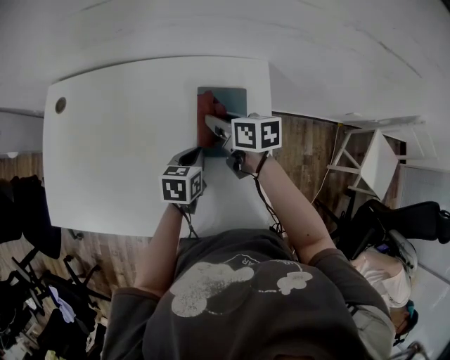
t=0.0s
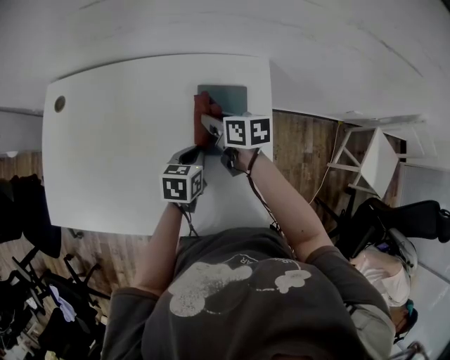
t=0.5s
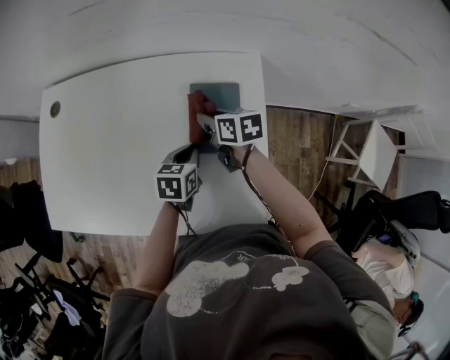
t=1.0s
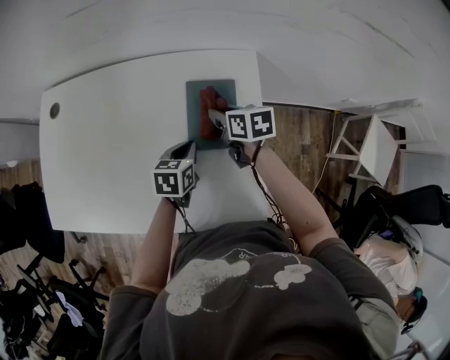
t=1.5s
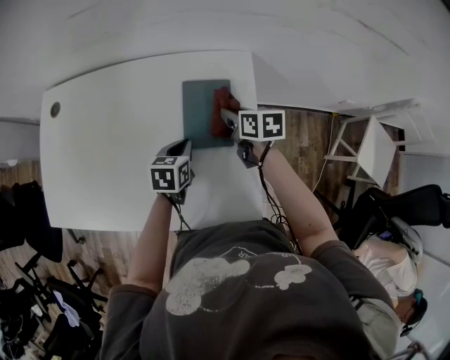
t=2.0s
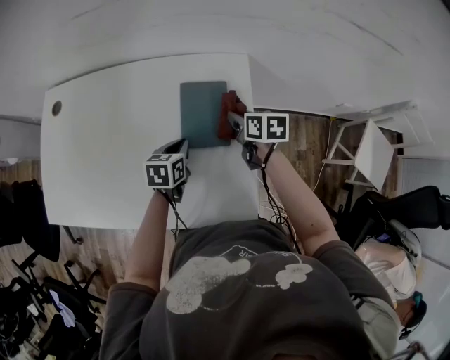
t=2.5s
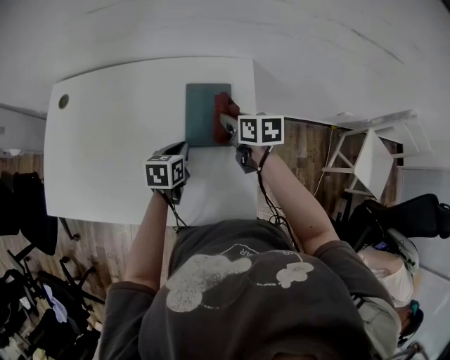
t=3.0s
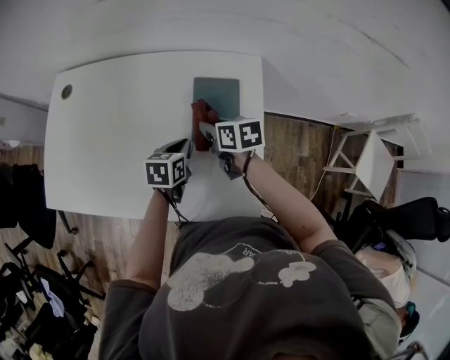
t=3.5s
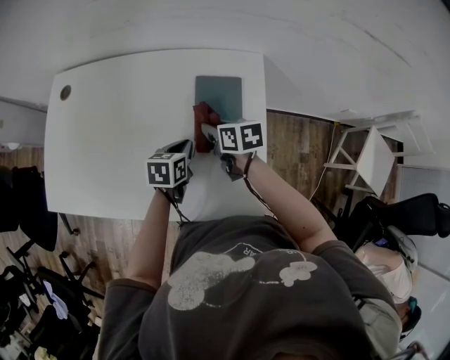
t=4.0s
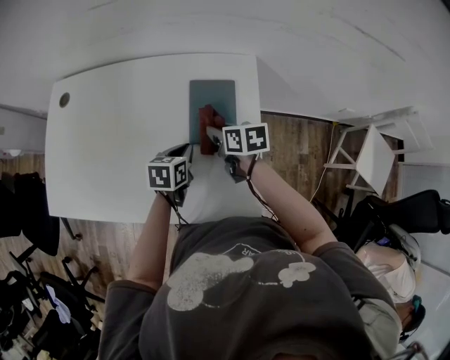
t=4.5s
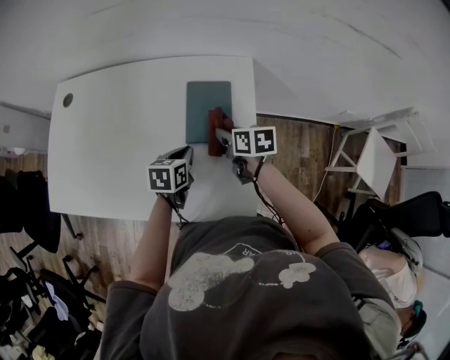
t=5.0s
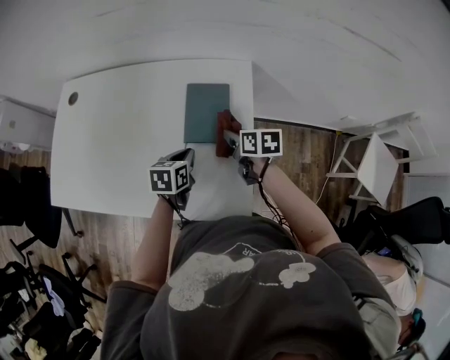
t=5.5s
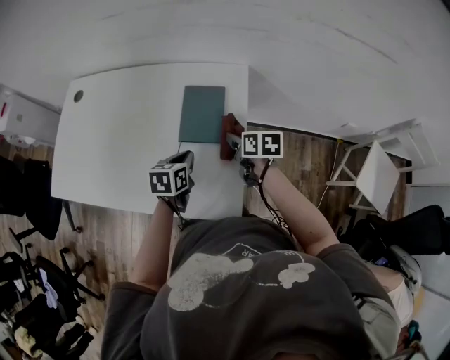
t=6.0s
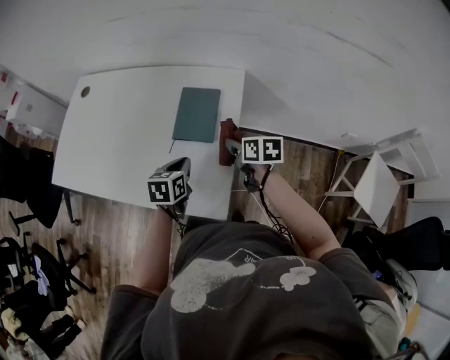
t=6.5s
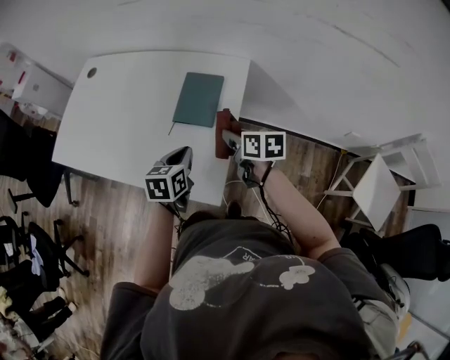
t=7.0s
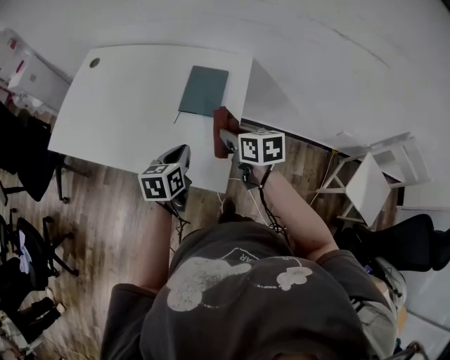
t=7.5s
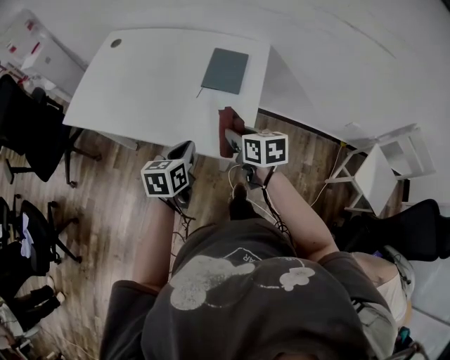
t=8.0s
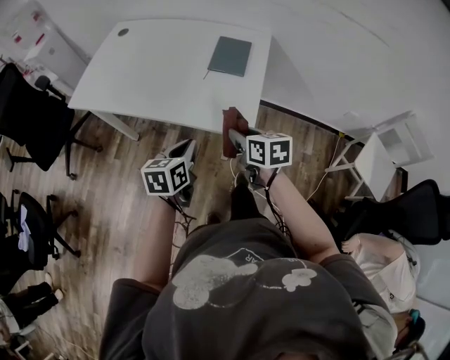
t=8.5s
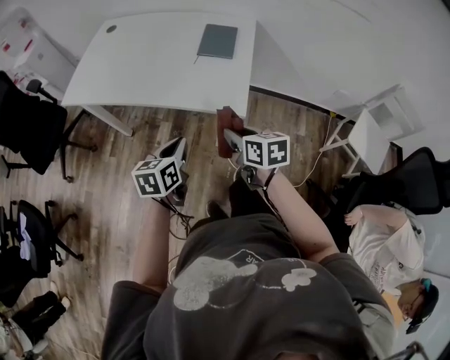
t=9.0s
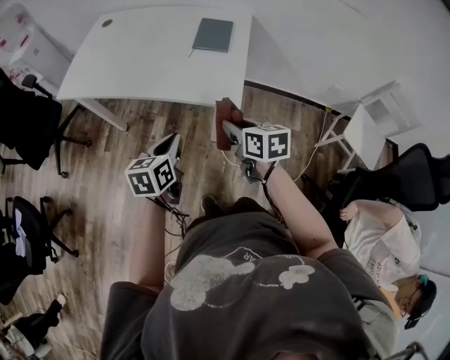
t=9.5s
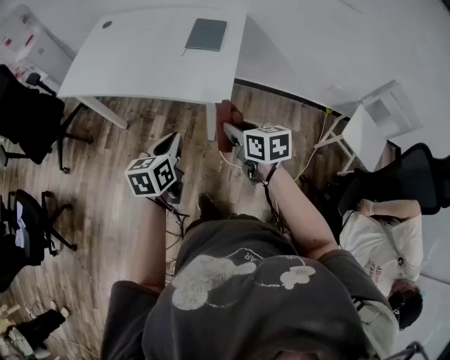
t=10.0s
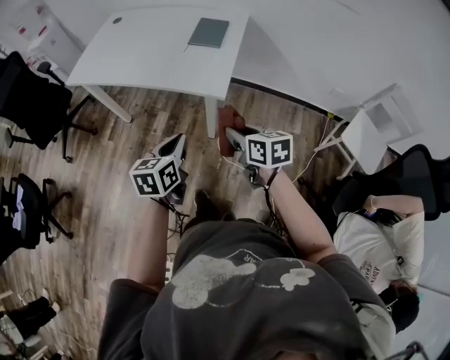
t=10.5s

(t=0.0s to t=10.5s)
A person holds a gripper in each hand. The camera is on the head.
t=0.0s - t=2.0s: The right gripper heads to the right, covering roughly 10 cm.
t=2.0s - t=4.0s: The right gripper shifts about 10 cm to the left and backward.
t=4.0s - t=6.5s: The left gripper goes some 15 cm backward, to the right and upward. Meanwhile the right gripper moves to the right and backward, some 20 cm.
t=6.5s - t=8.5s: Both grippers move backward and to the left, approximately 30 cm.
t=8.5s - t=10.5s: The left gripper moves backward, some 20 cm. The right gripper moves backward and to the right, approximately 20 cm.

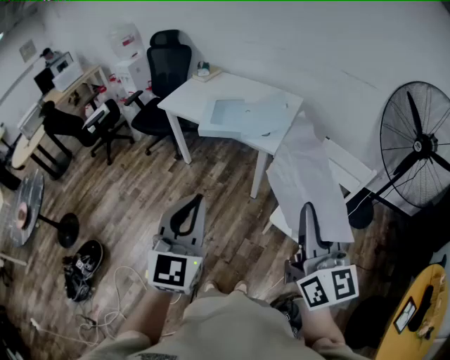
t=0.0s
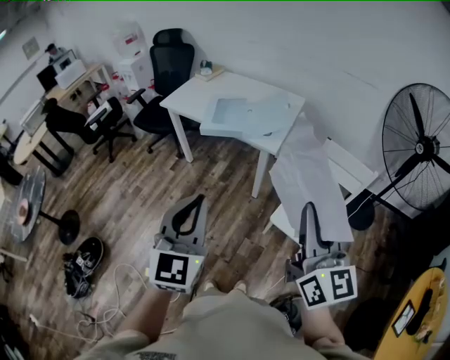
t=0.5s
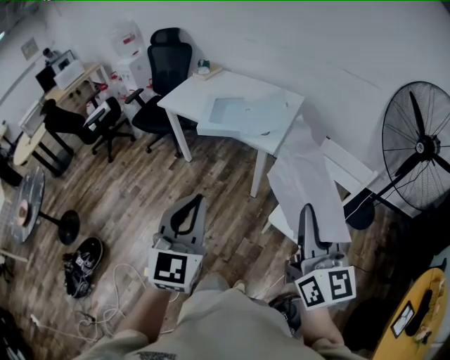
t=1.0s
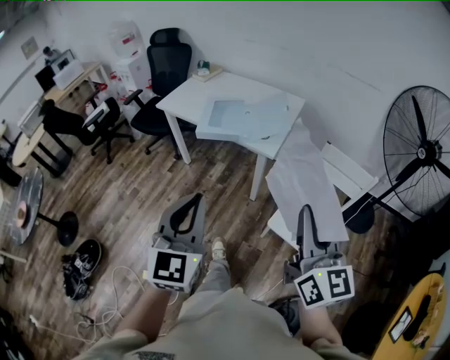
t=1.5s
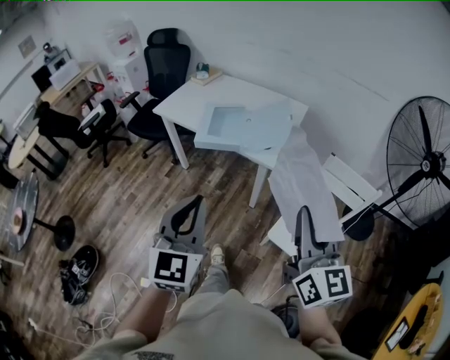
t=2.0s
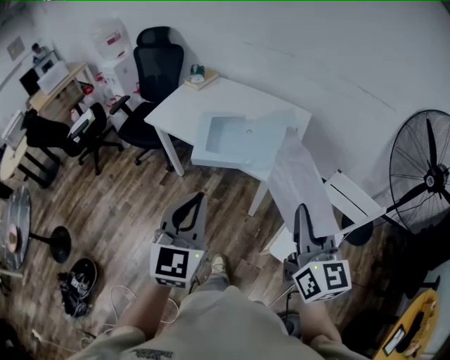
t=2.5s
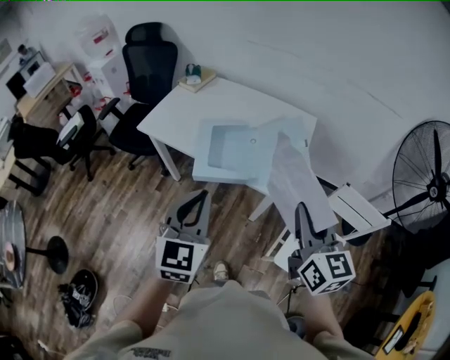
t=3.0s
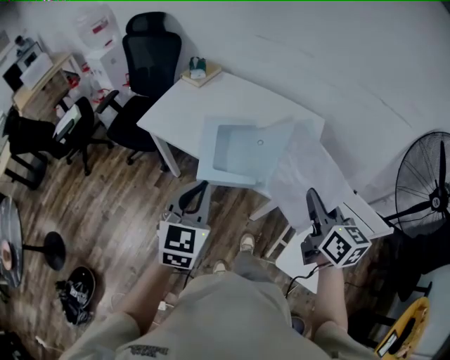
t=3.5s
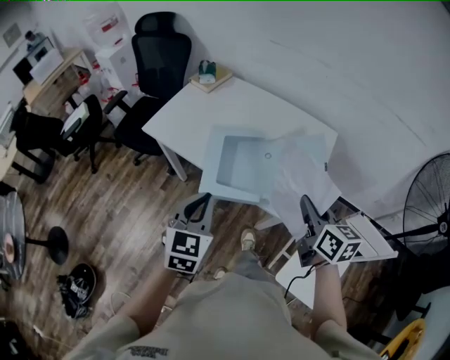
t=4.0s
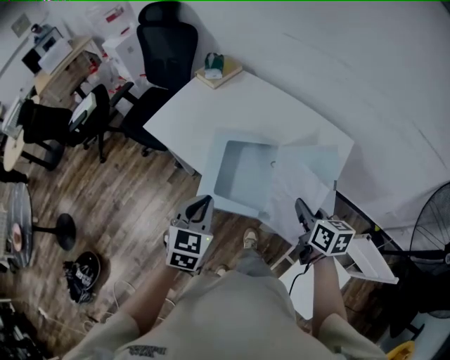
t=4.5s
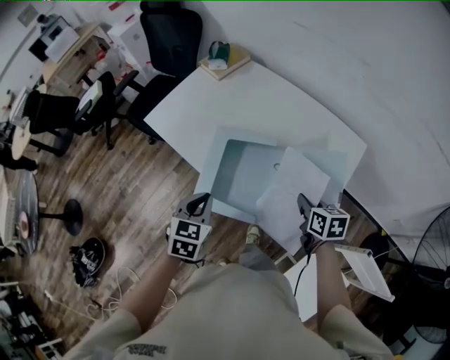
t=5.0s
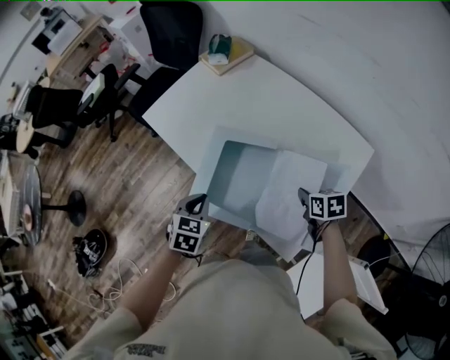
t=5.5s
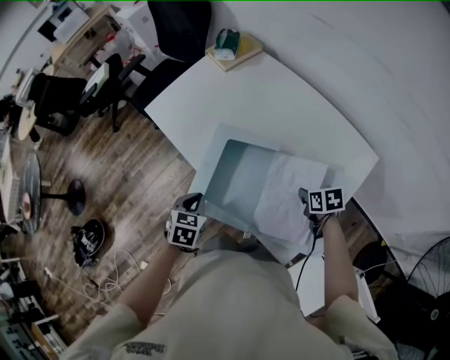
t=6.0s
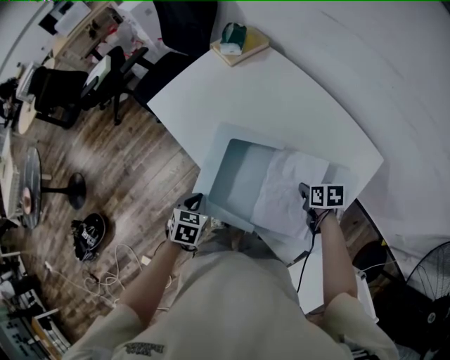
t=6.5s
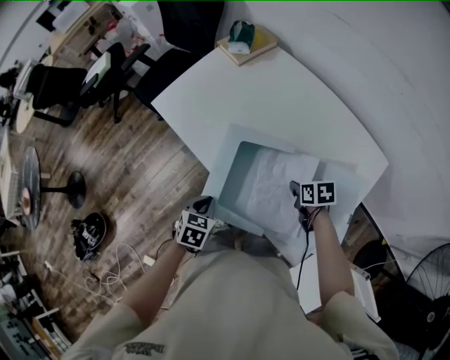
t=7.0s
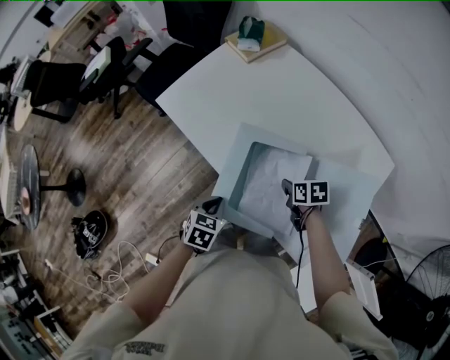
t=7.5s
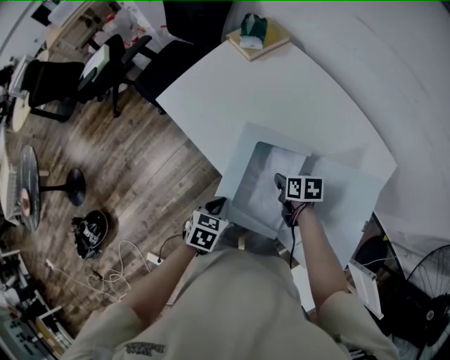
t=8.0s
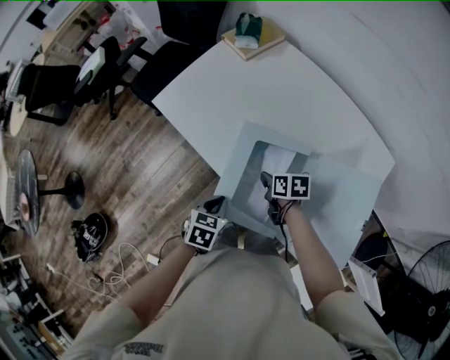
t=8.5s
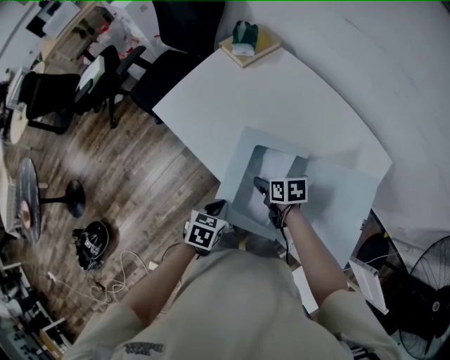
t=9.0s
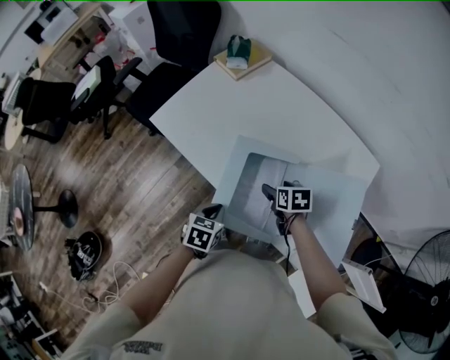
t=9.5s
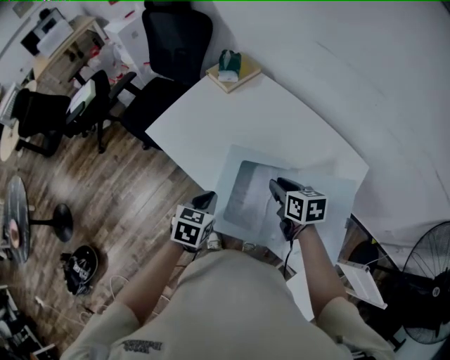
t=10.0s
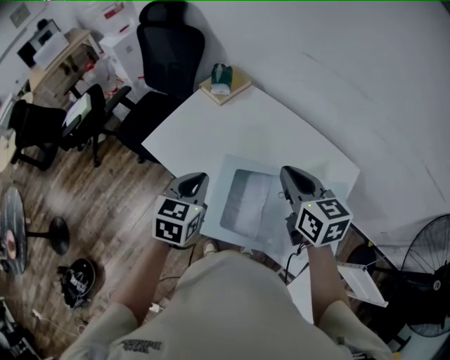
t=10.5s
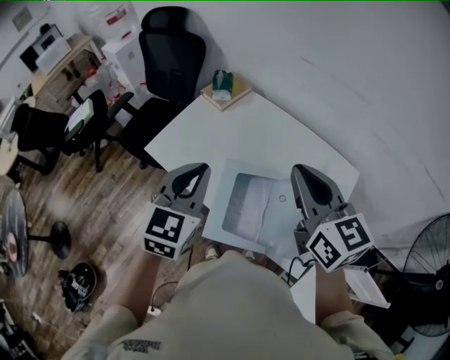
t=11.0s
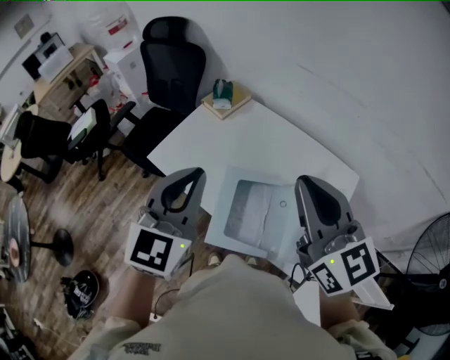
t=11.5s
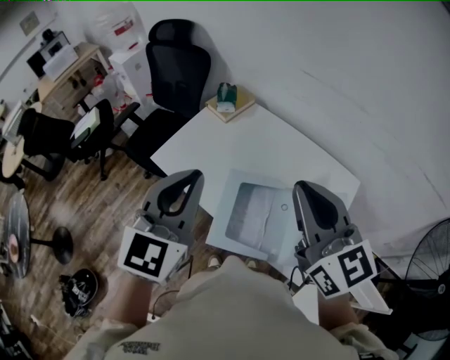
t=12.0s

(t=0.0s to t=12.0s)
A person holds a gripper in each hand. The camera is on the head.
t=0.0s - t=2.0s: Both grippers travel together forward, about 10 cm.
t=2.0s - t=4.0s: The pair of grippers is taken forward, roughly 40 cm. The right gripper swivels roughly 30 degrees.
t=4.0s - t=6.0s: Both grippers move downward, approximately 25 cm. The right gripper angles its fingers downward, by some 40 degrees. The left gripper tips its fingers downward by about 30 degrees.
t=6.0s - t=8.0s: The right gripper shifts about 20 cm to the left and forward.
t=8.0s - t=10.0s: The left gripper moves upward and forward, some 10 cm. The right gripper is displaced upward by about 15 cm, turns by roughly 20 degrees, and opens, then closes once more.
t=10.0s - t=12.0s: Both grippers move upward, approximately 35 cm. The left gripper angles its fingers upward, by about 40 degrees. The right gripper points its fingers about 40 degrees further upward.

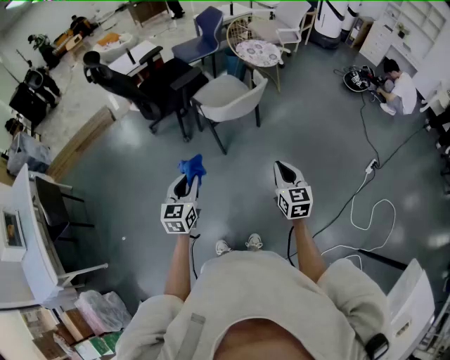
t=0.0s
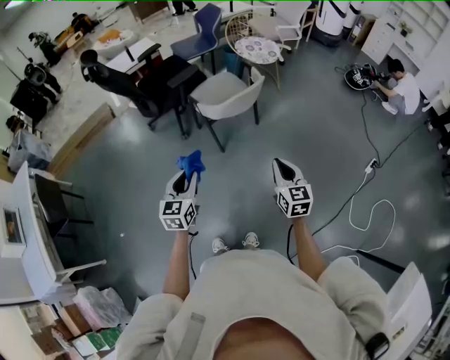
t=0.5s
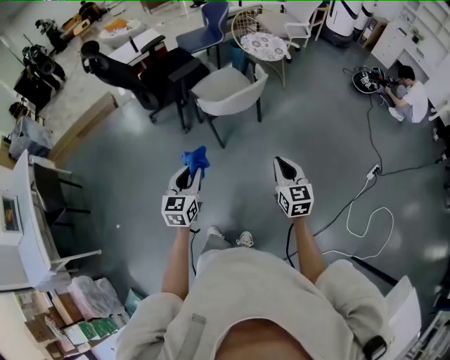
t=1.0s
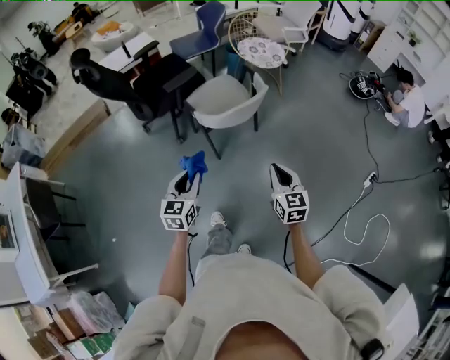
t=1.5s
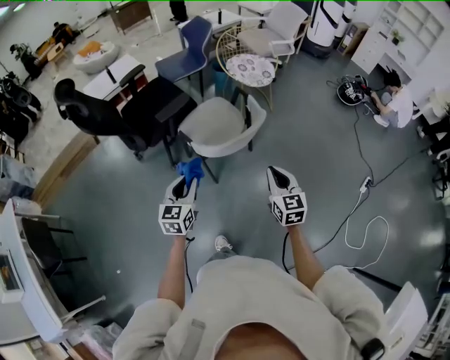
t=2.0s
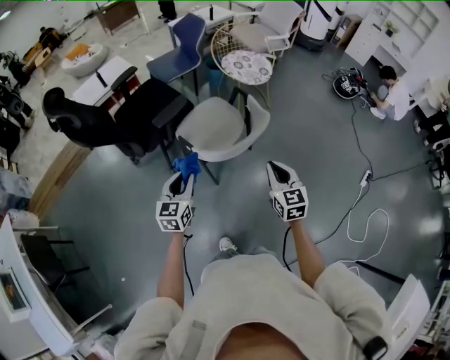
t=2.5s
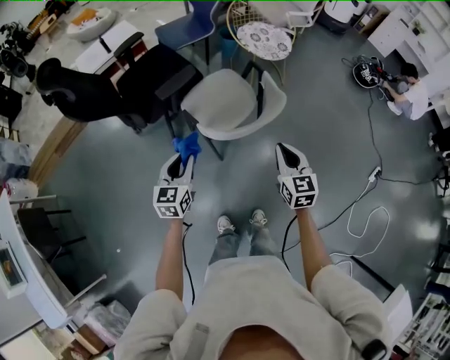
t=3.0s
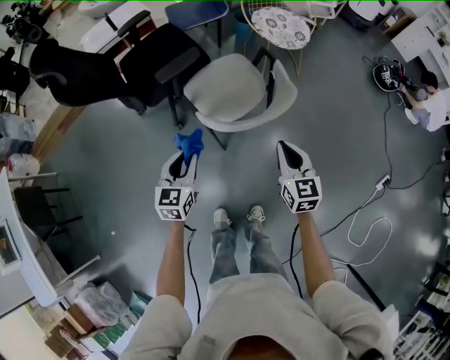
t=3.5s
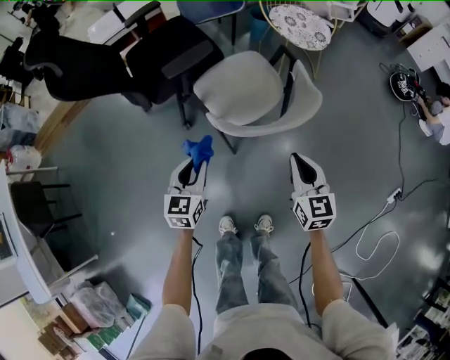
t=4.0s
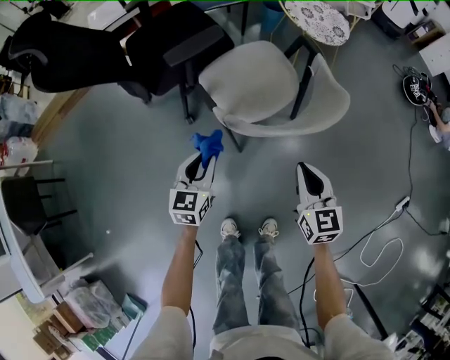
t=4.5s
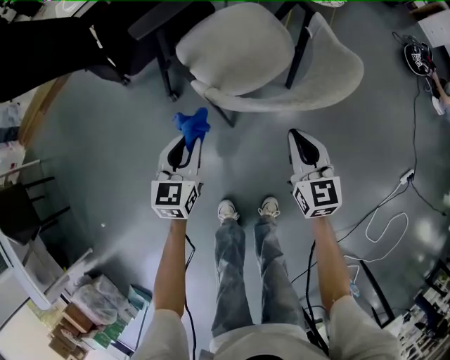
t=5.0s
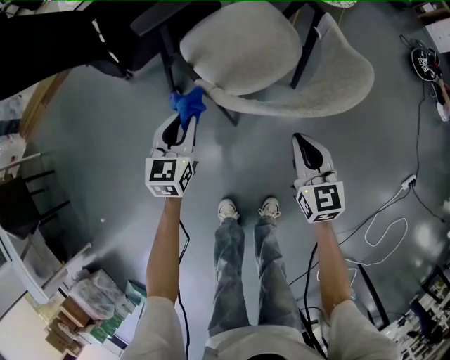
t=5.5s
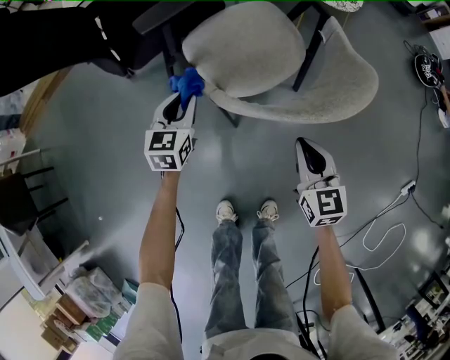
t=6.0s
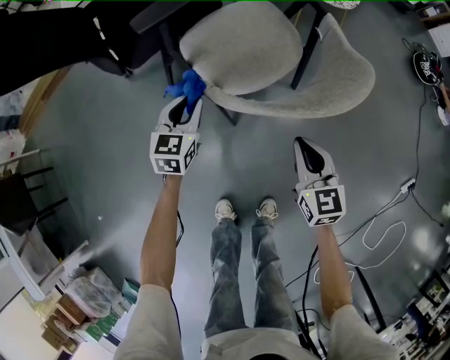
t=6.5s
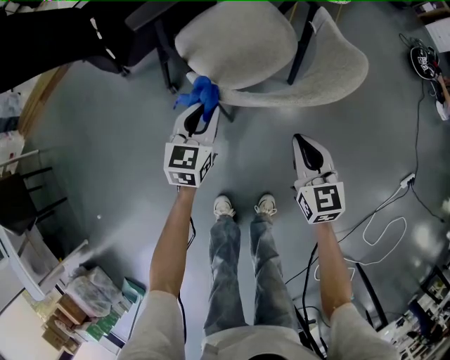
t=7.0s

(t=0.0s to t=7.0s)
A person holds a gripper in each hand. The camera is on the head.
t=0.0s - t=2.0s: Both grippers travel together forward, roughly 25 cm.
t=2.0s - t=3.5s: Both grippers move forward and downward, some 10 cm.
t=3.5s - t=5.0s: The two grippers go approximately 20 cm downward.
t=5.0s - t=7.0s: The left gripper goes roughly 10 cm to the right and forward.
